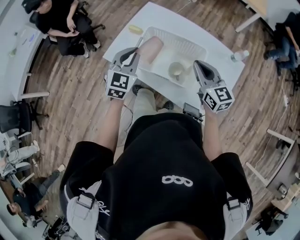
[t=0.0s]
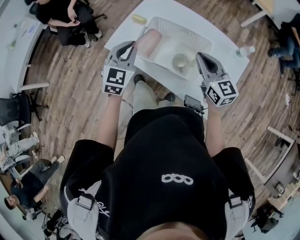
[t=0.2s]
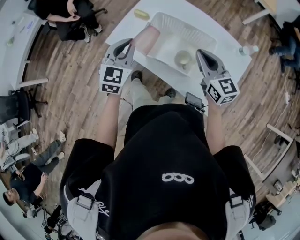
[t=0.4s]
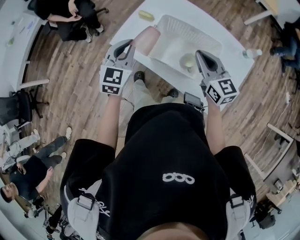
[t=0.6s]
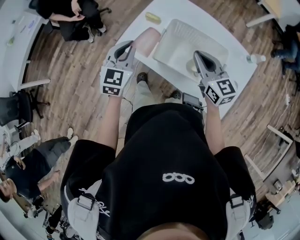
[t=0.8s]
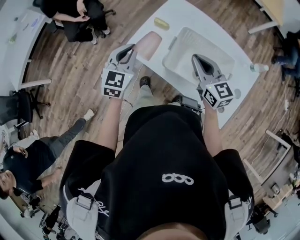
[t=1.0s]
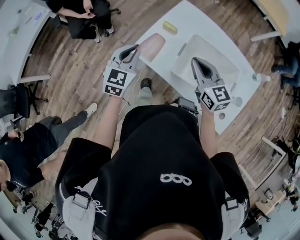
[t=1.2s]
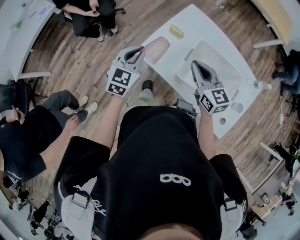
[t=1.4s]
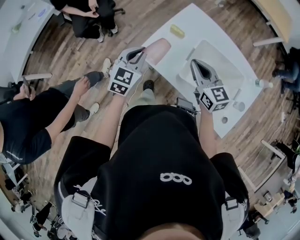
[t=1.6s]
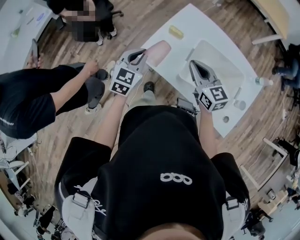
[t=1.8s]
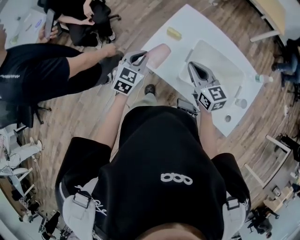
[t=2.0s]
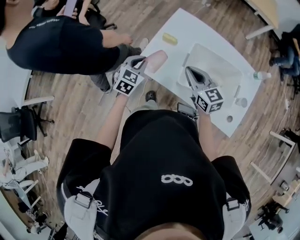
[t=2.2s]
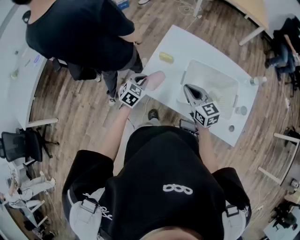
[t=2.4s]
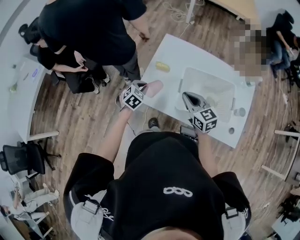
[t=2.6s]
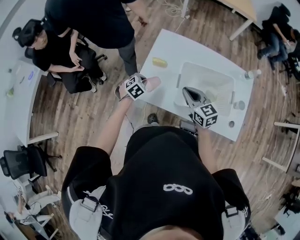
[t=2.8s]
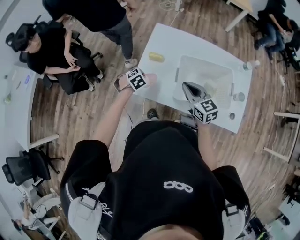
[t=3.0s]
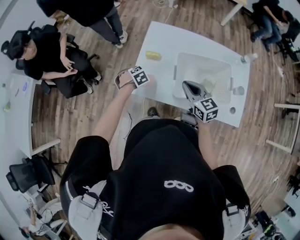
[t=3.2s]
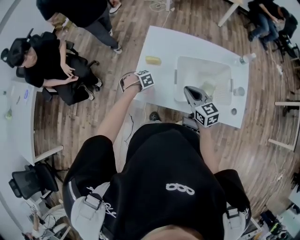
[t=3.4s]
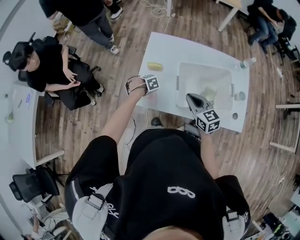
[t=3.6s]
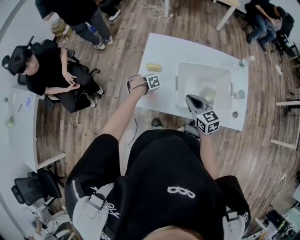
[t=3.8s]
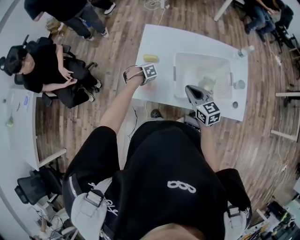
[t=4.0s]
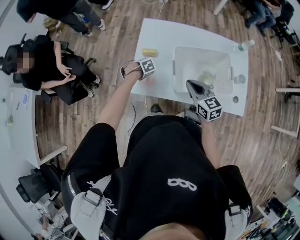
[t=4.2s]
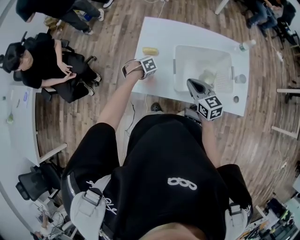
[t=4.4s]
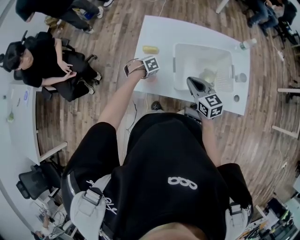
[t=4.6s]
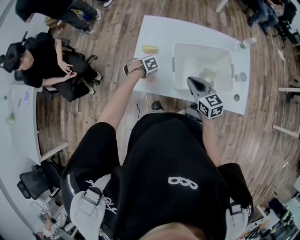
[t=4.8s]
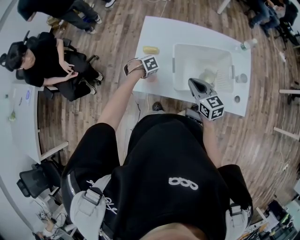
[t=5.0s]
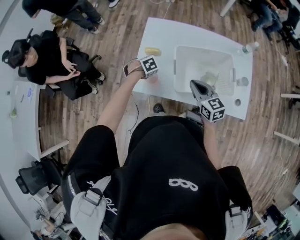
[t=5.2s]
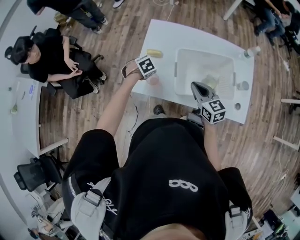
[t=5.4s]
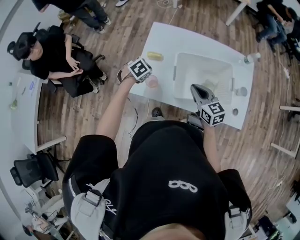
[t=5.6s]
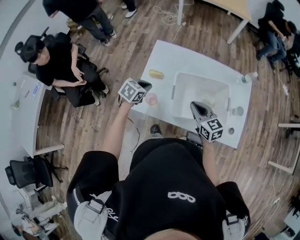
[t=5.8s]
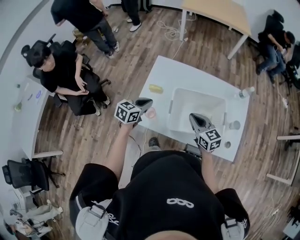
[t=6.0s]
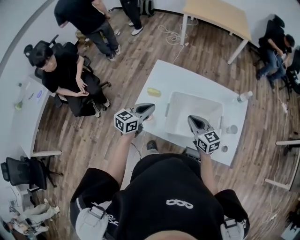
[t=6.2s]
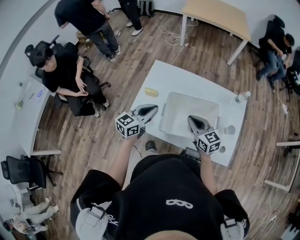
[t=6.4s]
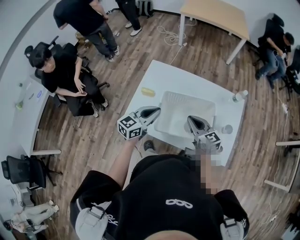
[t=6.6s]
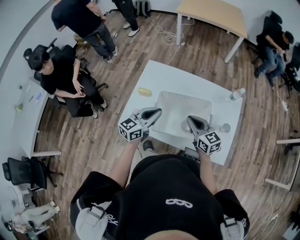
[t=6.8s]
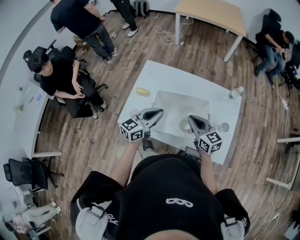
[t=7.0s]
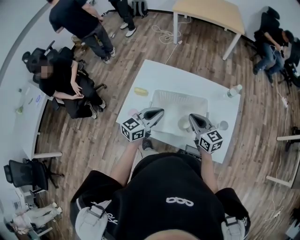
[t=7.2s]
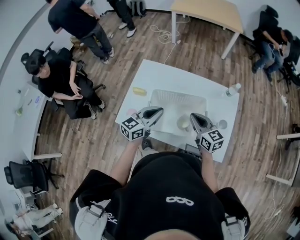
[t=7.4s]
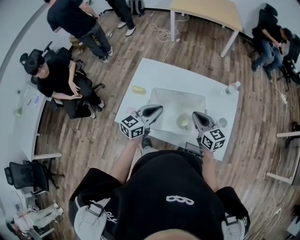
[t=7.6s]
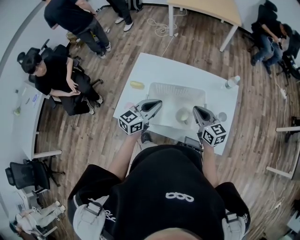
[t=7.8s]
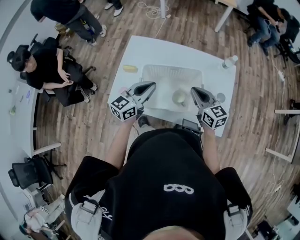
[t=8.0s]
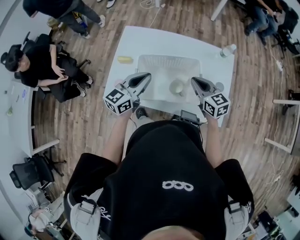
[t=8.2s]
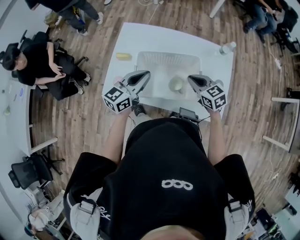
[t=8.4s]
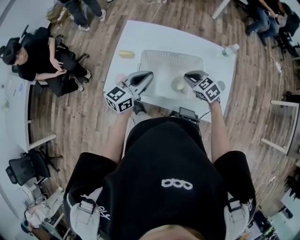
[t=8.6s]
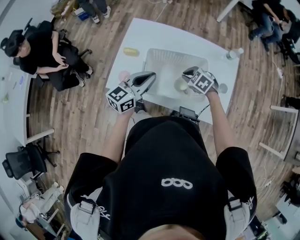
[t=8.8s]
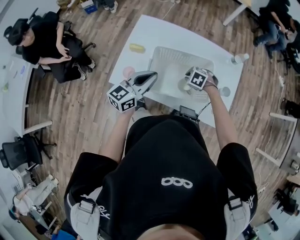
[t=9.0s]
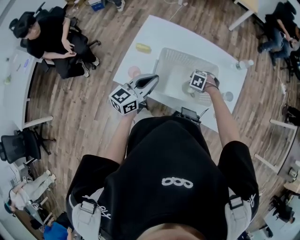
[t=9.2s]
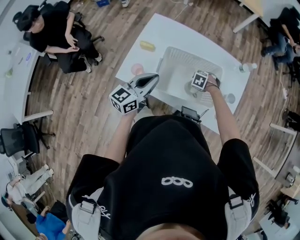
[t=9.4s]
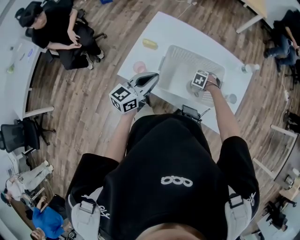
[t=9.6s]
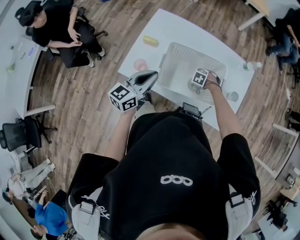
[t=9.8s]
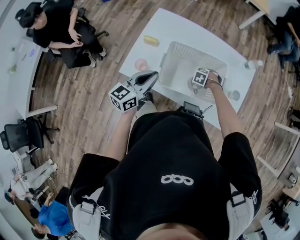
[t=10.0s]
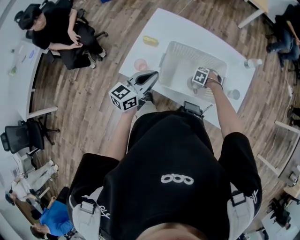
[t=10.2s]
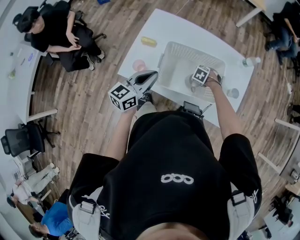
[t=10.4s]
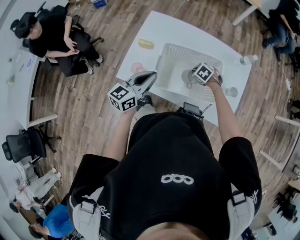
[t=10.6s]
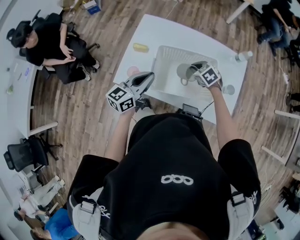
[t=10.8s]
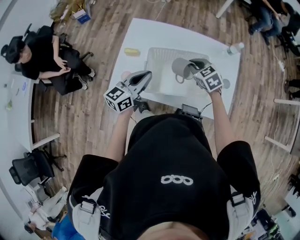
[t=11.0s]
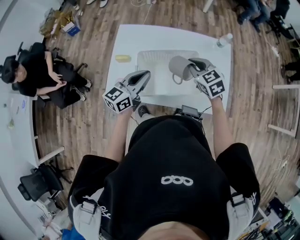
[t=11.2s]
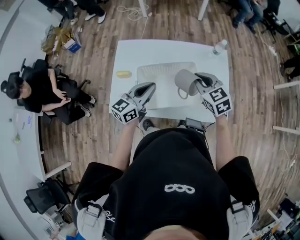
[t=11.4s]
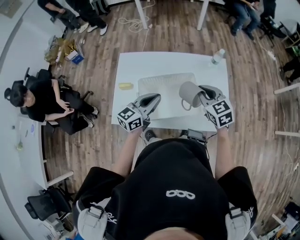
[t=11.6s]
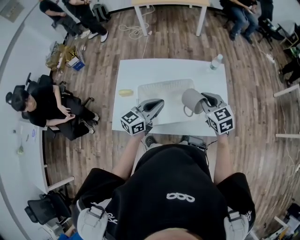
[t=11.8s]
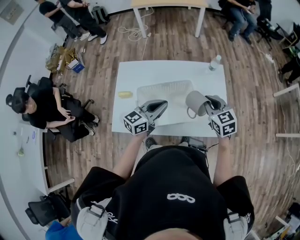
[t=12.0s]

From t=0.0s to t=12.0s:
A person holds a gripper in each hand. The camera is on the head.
From t=0.0s to t=1.6s: The right gripper shifts some 30 cm to the left and forward, while the left gripper shifts about 25 cm to the left.
From t=1.6s to t=3.0s: The right gripper shifts approximately 5 cm downward, while the left gripper moves downward and forward, roughly 20 cm, and points its fingers roughly 40 degrees further downward.
From t=3.0s to t=4.4s: The left gripper travels downward by roughly 5 cm, and turns by approximately 30 degrees.
From t=4.4s to t=6.0s: The left gripper shifts some 25 cm upward, and tilts its fingers roughly 50 degrees upward. Meanwhile the right gripper ends up about 5 cm from where it was.
From t=6.0s to t=7.6s: The right gripper goes some 15 cm to the right, while the left gripper moves to the right and upward, approximately 20 cm, and rotates approximately 20 degrees.
From t=7.6s to t=9.0s: The right gripper goes roughly 20 cm downward, and tilts its fingers roughly 60 degrees downward.
From t=9.0s to t=10.4s: The left gripper shifts by roughly 5 cm; the right gripper is displaced downward by approximately 10 cm, and opens and closes again.
From t=10.4s to t=12.0s: The right gripper heads upward, covering roughly 30 cm, and angles its fingers upward, by approximately 50 degrees, while the left gripper shifts by about 15 cm, and rotates approximately 30 degrees.

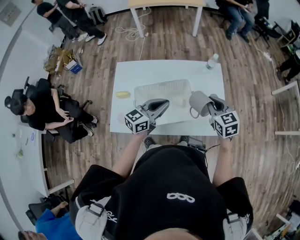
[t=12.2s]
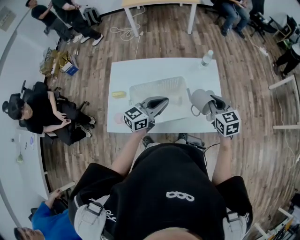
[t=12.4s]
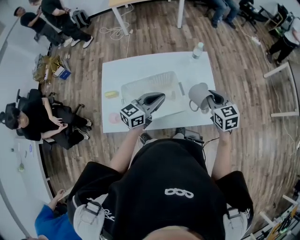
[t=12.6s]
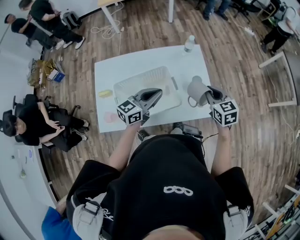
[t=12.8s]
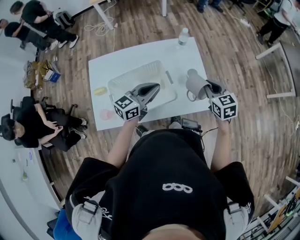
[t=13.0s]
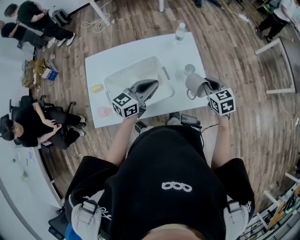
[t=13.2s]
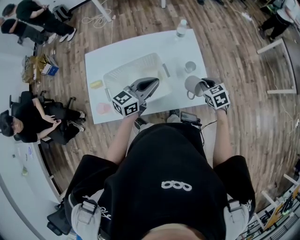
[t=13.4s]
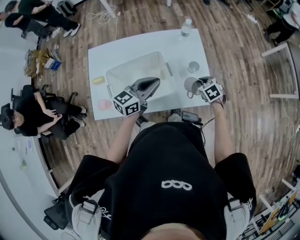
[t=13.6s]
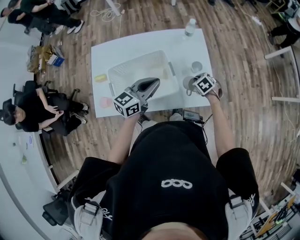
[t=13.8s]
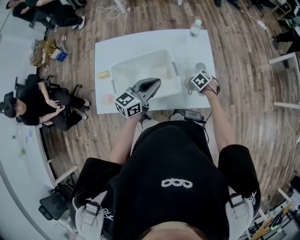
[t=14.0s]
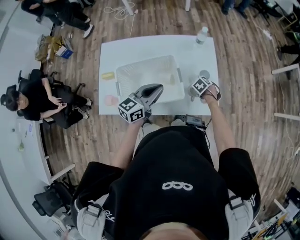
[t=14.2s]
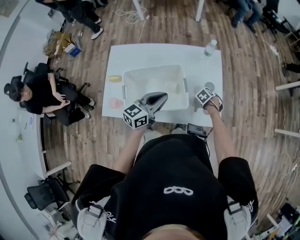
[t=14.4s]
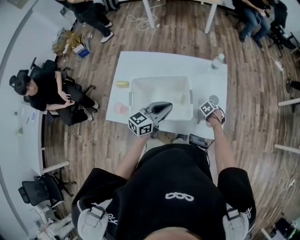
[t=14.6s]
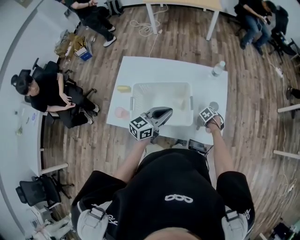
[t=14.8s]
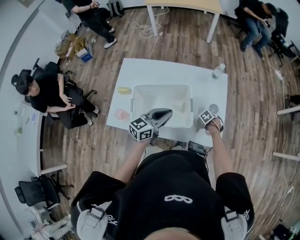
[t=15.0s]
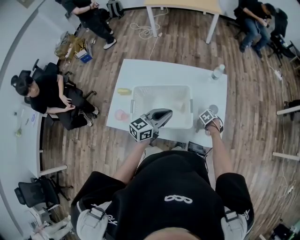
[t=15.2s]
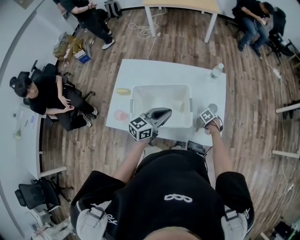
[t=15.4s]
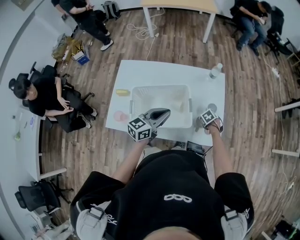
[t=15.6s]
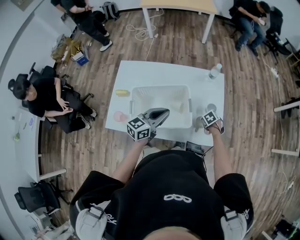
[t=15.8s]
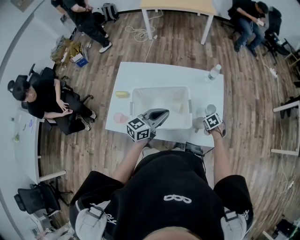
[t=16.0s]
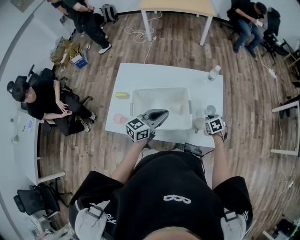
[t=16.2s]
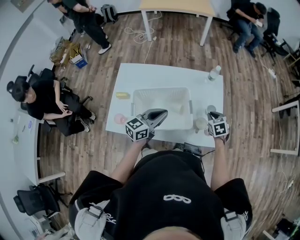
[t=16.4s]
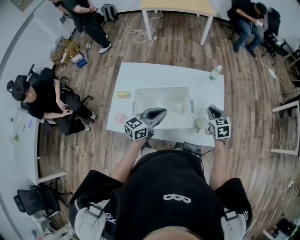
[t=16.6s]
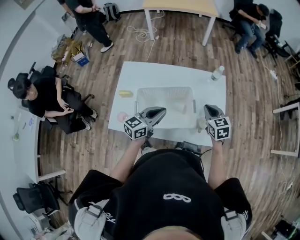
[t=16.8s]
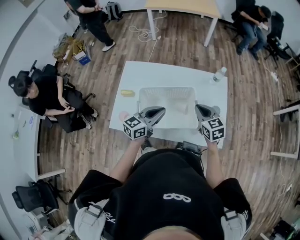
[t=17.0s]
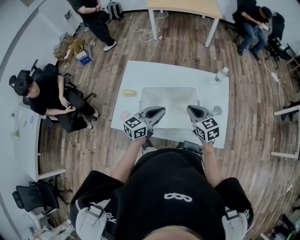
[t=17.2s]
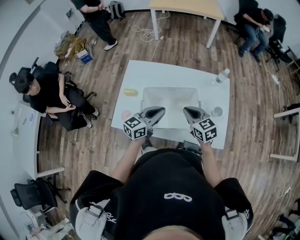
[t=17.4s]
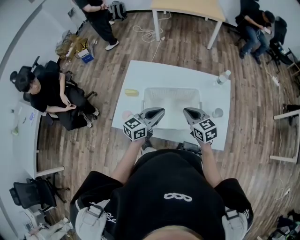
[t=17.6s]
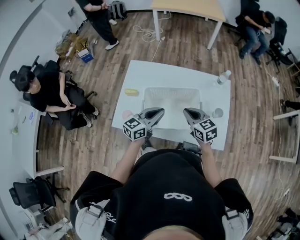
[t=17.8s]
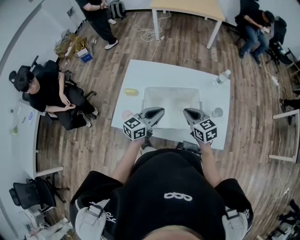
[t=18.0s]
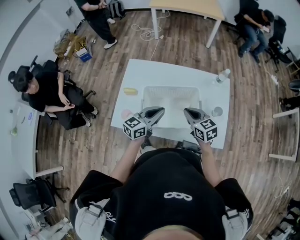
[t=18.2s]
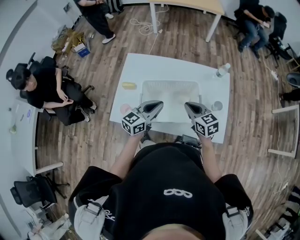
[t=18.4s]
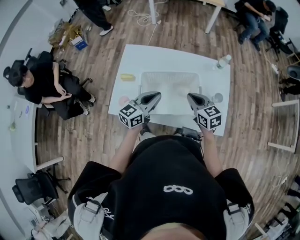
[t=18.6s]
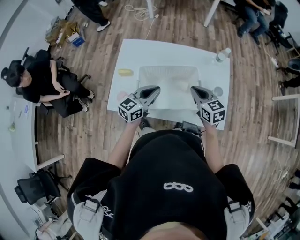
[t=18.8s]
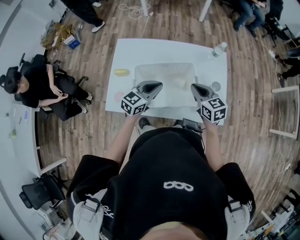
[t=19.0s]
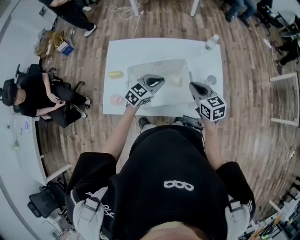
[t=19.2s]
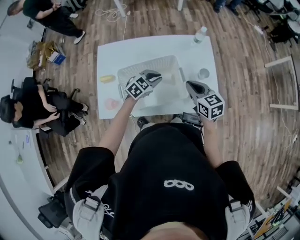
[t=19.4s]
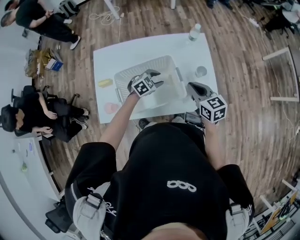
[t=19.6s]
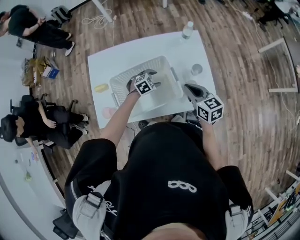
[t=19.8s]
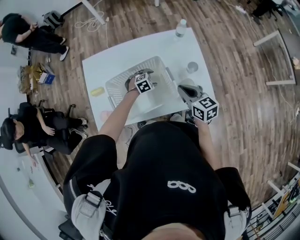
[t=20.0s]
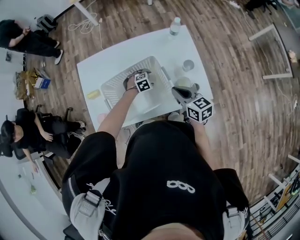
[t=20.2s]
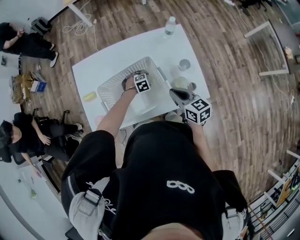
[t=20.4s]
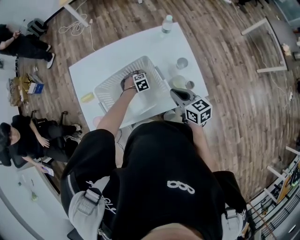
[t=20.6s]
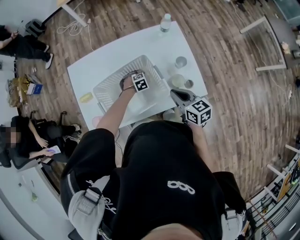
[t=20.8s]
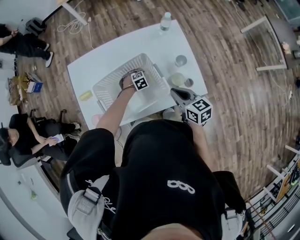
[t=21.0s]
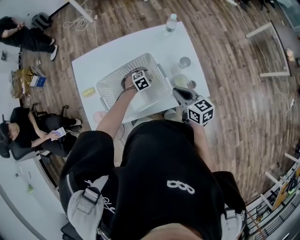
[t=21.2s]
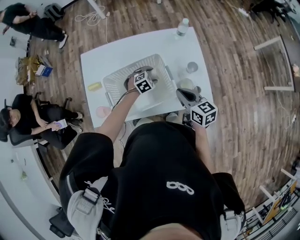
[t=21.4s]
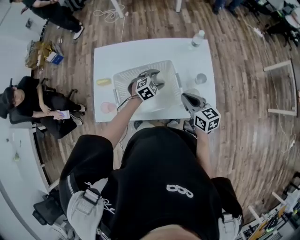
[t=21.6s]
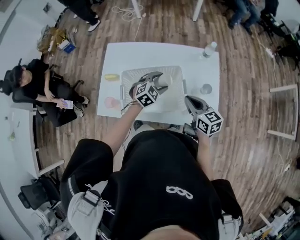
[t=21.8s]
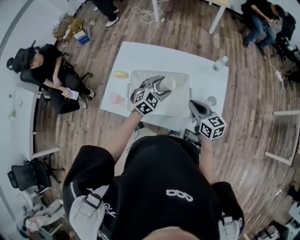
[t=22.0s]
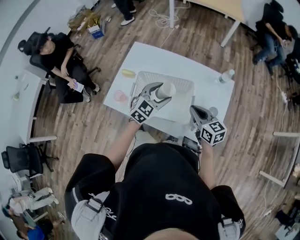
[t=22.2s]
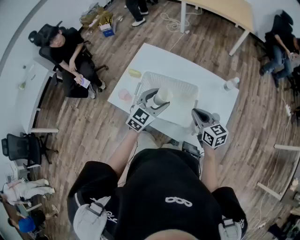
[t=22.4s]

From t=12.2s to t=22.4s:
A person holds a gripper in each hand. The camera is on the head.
From t=12.2s to t=13.6s: The right gripper travels downward and to the right by roughly 20 cm, and rotates approximately 30 degrees. Meanwhile the left gripper is displaced to the right by some 10 cm.
From t=13.6s to t=15.2s: The right gripper heads downward, covering about 15 cm, and turns by about 30 degrees. The left gripper shifts by approximately 5 cm.
From t=15.2s to t=16.6s: The right gripper goes approximately 25 cm upward, and tilts its fingers approximately 50 degrees upward.
From t=16.6s to t=18.0s: The right gripper heads to the left, covering some 20 cm, and turns by some 30 degrees; the left gripper heads to the left, covering roughly 5 cm.
From t=18.0s to t=19.4s: The left gripper is displaced downward, to the right and forward by about 15 cm, and tilts its fingers some 30 degrees downward. The right gripper shifts about 10 cm to the right.
From t=19.4s to t=21.0s: The right gripper ends up roughly 10 cm from where it was. Meanwhile the left gripper travels downward by some 20 cm, angles its fingers downward, by approximately 30 degrees, and opens its fingers.
From t=21.0s to t=22.4s: The left gripper goes roughly 30 cm upward, and tips its fingers upward by roughly 50 degrees. Meanwhile the right gripper ends up some 10 cm from where it was, and rotates some 40 degrees.

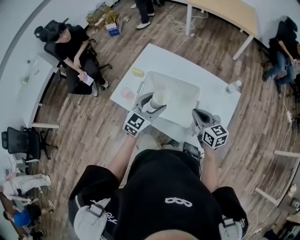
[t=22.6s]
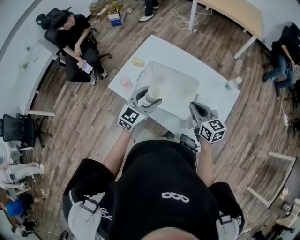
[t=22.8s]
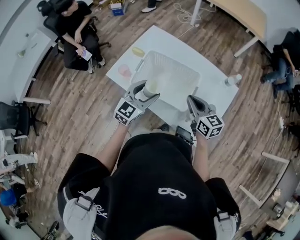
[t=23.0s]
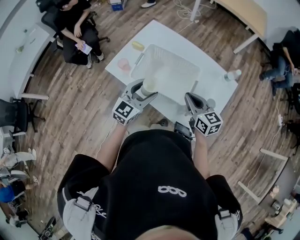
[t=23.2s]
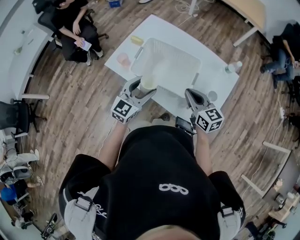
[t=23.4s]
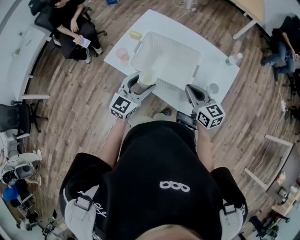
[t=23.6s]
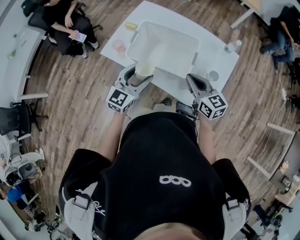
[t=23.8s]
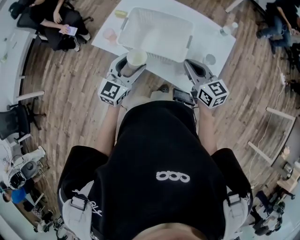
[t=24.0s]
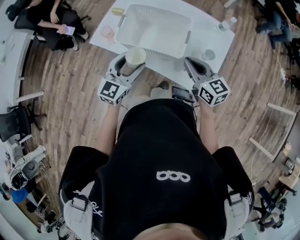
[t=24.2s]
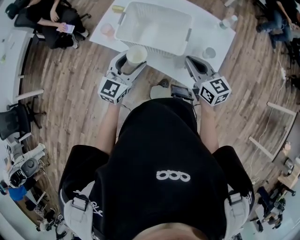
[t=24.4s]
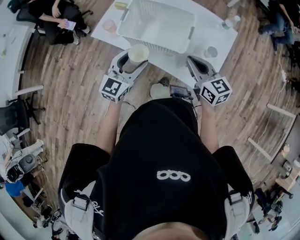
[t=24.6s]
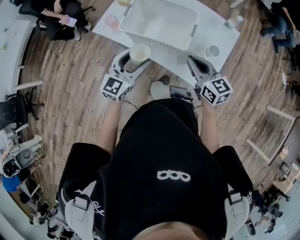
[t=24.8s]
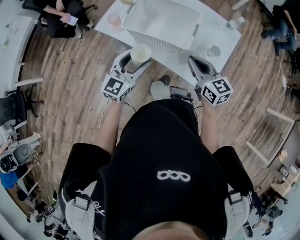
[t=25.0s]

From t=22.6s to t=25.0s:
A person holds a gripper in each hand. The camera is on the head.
From t=22.6s to t=23.8s: The two grippers go about 10 cm backward.
From t=23.8s to t=25.0s: The left gripper travels backward by some 5 cm.
